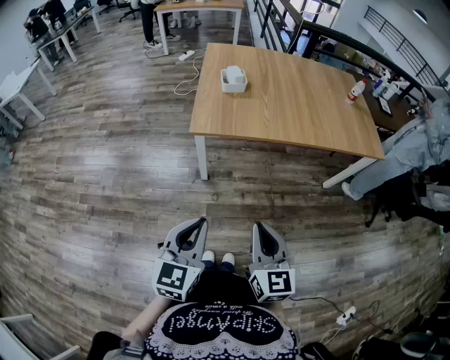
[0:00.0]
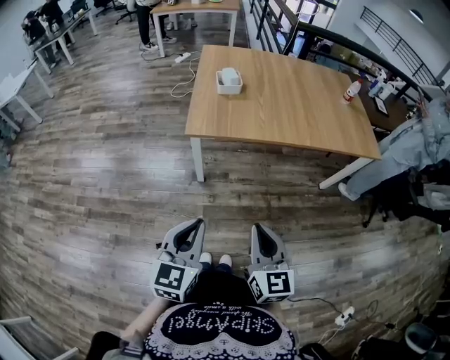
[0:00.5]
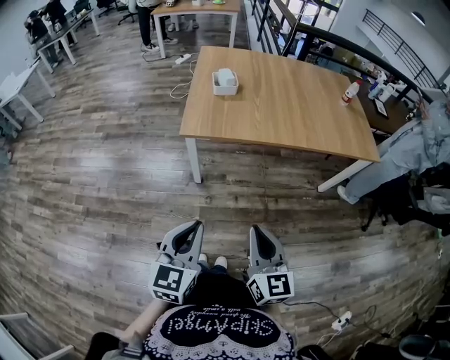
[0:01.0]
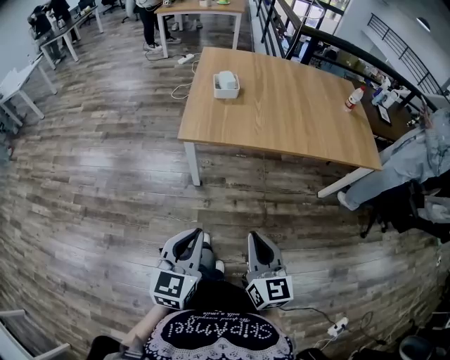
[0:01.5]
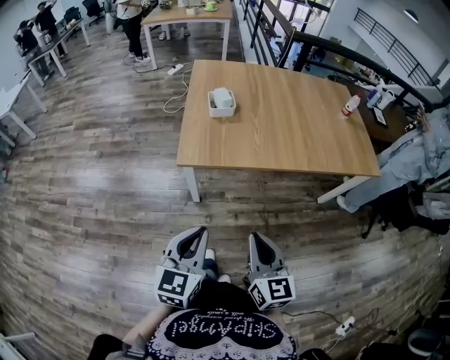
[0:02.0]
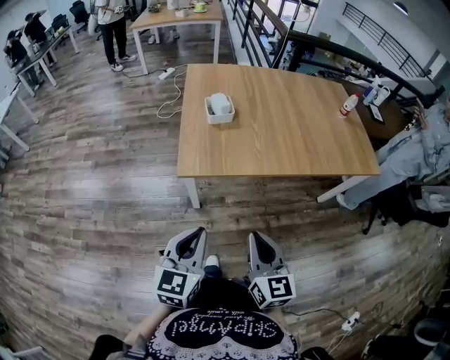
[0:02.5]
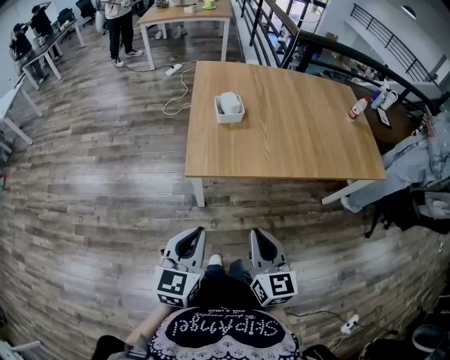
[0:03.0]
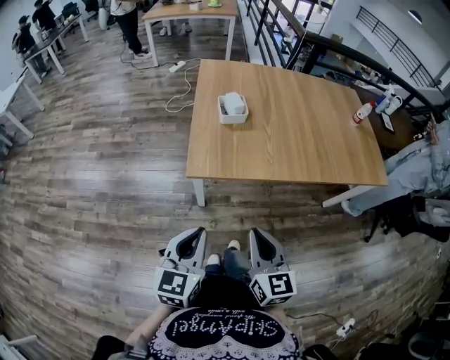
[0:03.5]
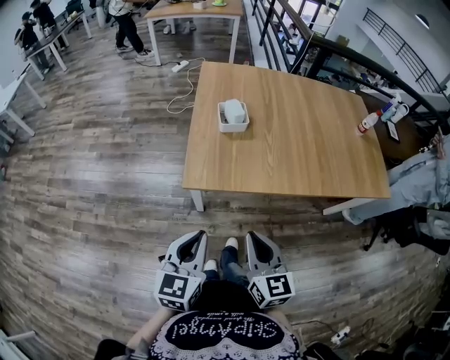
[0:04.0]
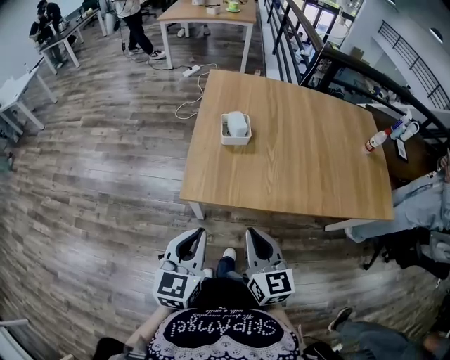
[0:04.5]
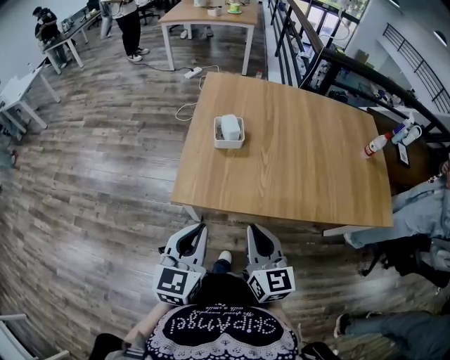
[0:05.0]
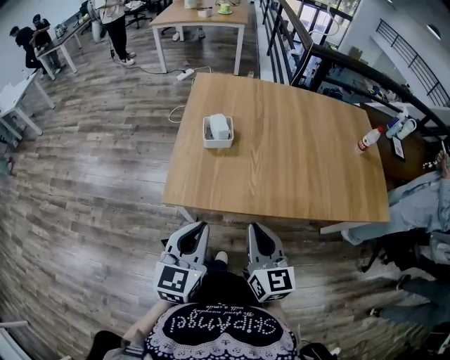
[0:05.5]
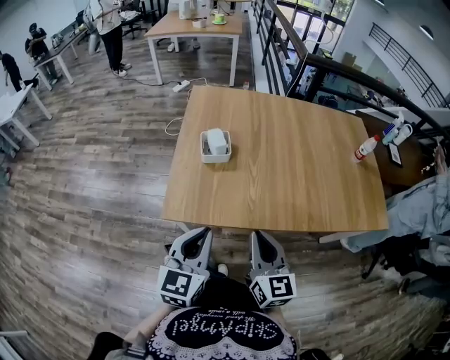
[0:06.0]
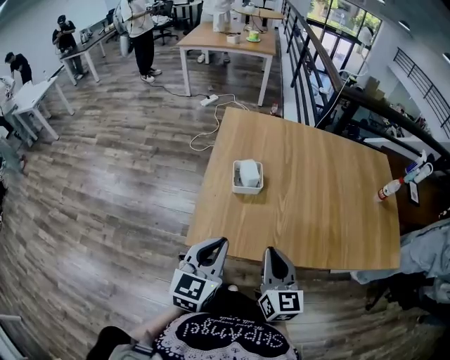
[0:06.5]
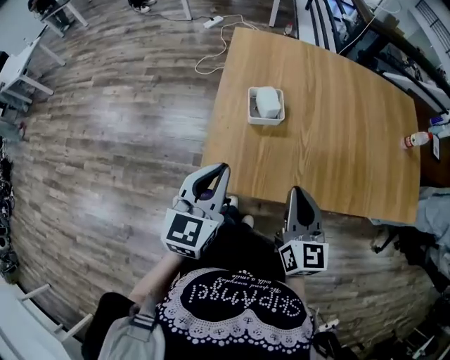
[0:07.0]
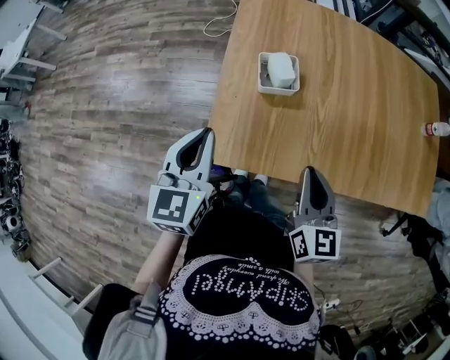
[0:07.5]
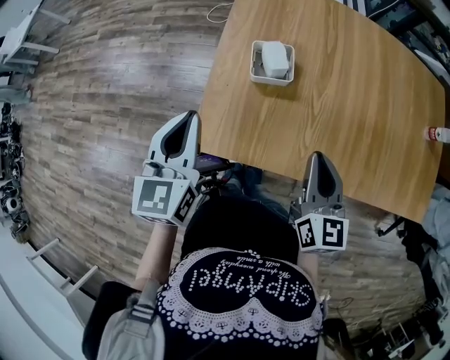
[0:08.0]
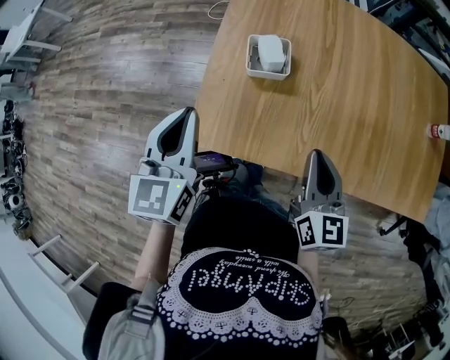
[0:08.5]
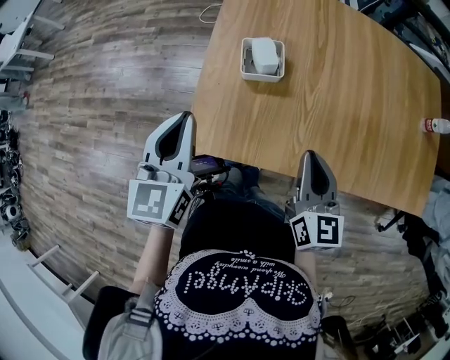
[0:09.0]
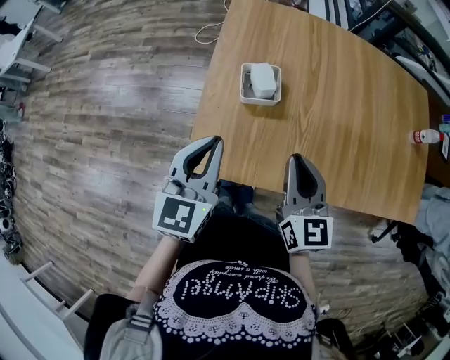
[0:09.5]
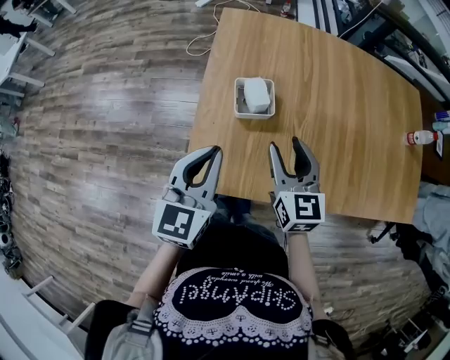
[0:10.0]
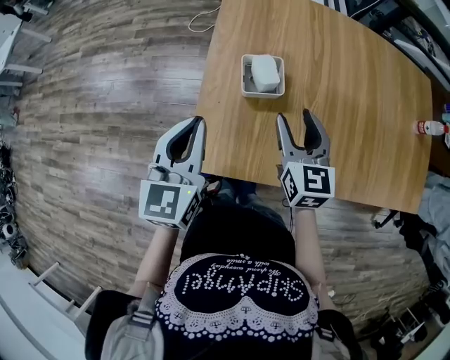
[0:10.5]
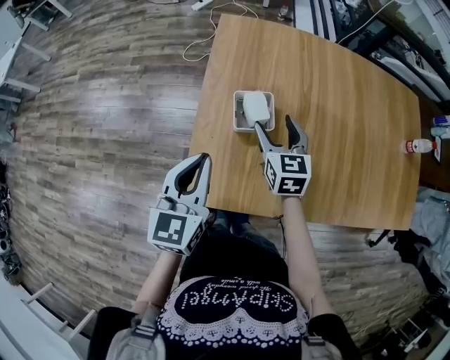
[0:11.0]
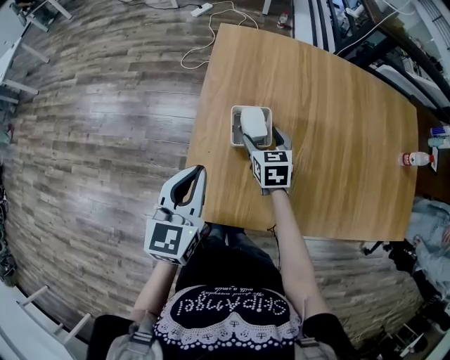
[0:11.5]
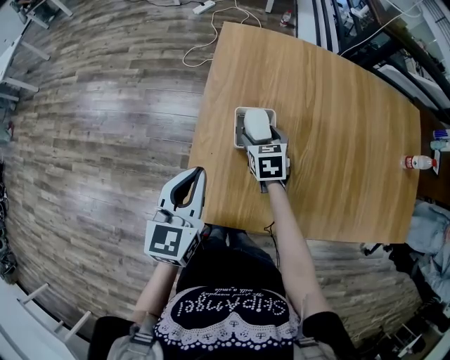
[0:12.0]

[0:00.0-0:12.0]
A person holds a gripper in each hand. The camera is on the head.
0:00.0 to 0:02.0: The grippers both shift forward by approximately 10 cm.
0:02.0 to 0:04.0: The right gripper shifts some 15 cm forward and to the left, while the left gripper shifts about 10 cm forward.
0:04.0 to 0:06.0: The two grippers go about 15 cm forward and to the right.
0:06.0 to 0:08.0: The right gripper goes roughly 15 cm forward. Meanwhile the left gripper goes roughly 20 cm forward and to the left.
0:08.0 to 0:10.0: The right gripper moves forward and to the left, approximately 10 cm, and opens, while the left gripper heads to the right, covering roughly 5 cm.
0:10.0 to 0:12.0: The left gripper moves forward, approximately 5 cm. Meanwhile the right gripper heads downward and forward, covering some 20 cm, swivels roughly 30 degrees, and opens.

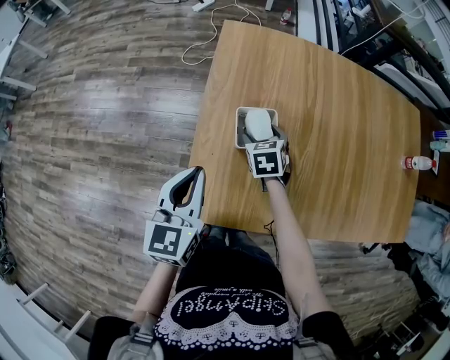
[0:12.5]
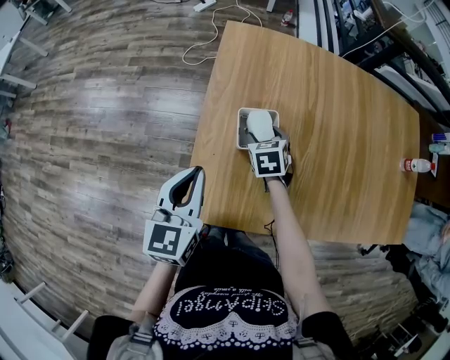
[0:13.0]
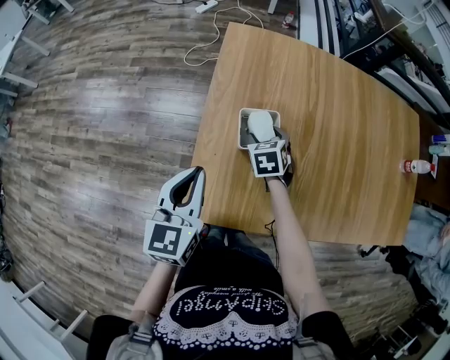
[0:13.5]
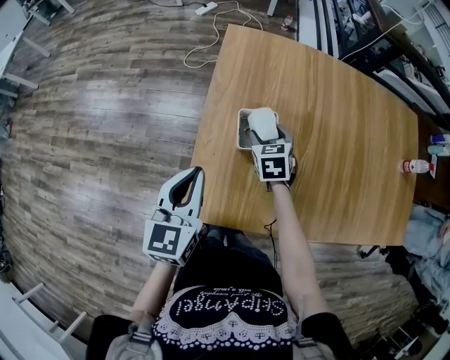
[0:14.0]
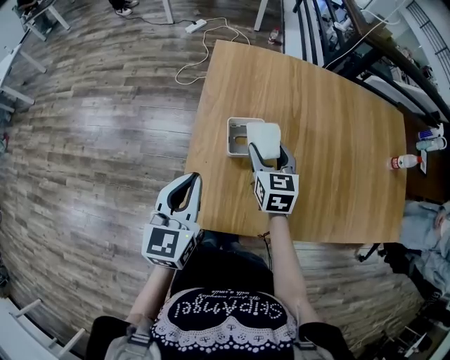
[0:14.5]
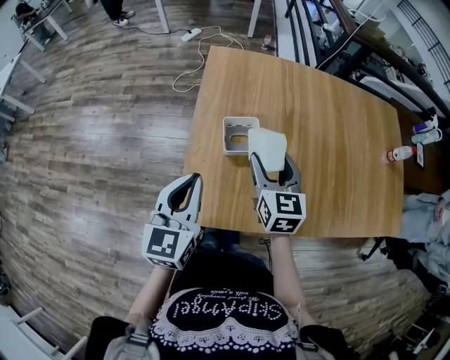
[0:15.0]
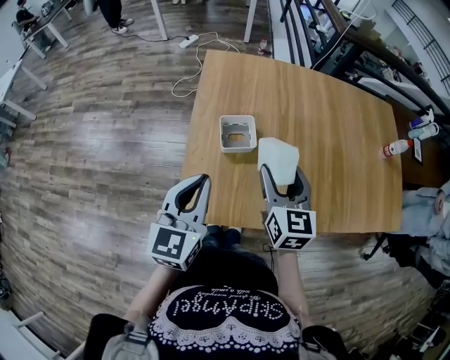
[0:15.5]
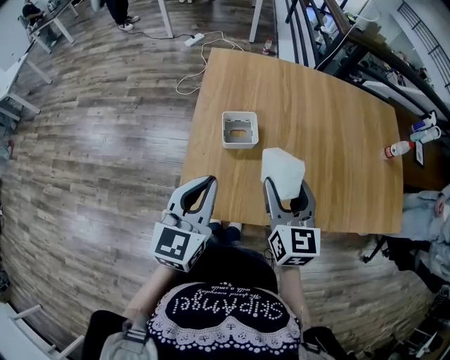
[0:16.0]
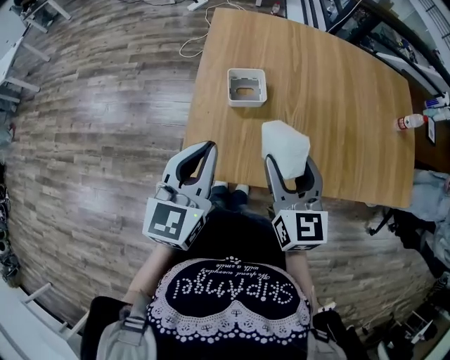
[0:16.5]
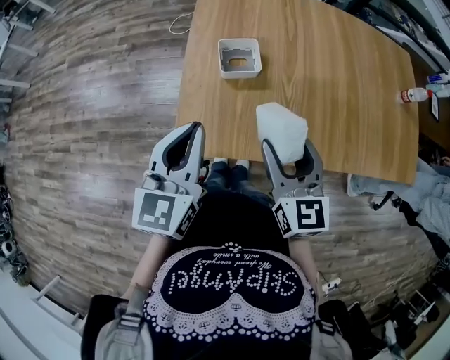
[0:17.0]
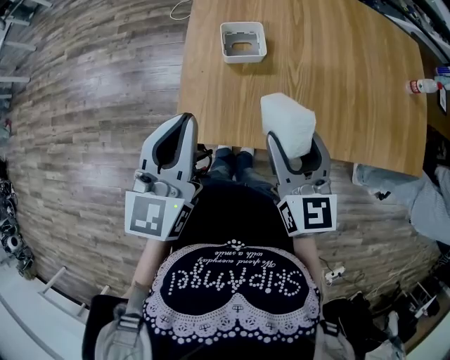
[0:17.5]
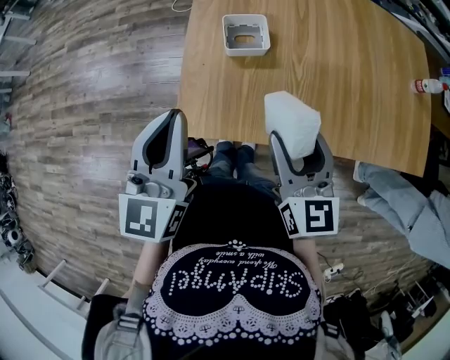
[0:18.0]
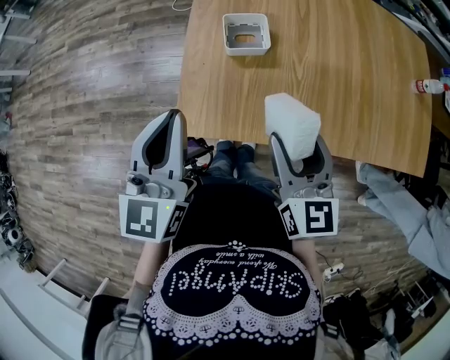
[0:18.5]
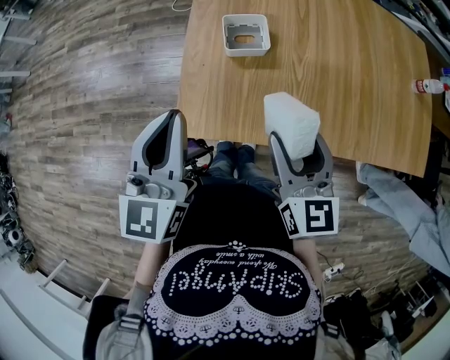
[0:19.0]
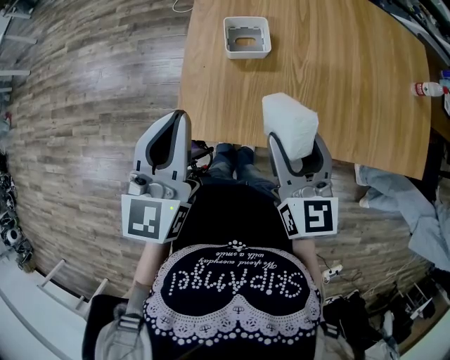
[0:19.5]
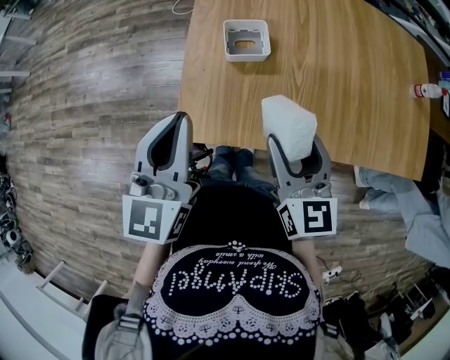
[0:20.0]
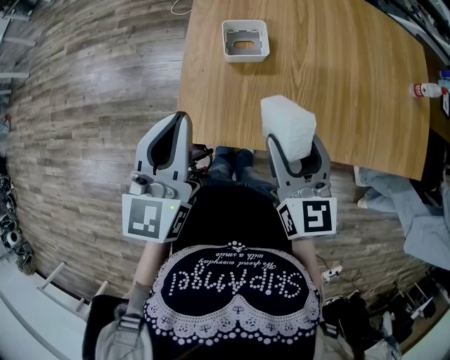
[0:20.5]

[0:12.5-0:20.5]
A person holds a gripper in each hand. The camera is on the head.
0:12.5 to 0:14.5: The right gripper goes some 10 cm upward, and swivels about 20 degrees.
0:14.5 to 0:16.5: The right gripper moves backward and upward, roughly 20 cm; the left gripper heads backward and to the right, covering some 10 cm.
0:16.5 to 0:18.5: The grippers stay close to where they were, moving slightly.
0:18.5 to 0:20.5: Both grippers stay put.

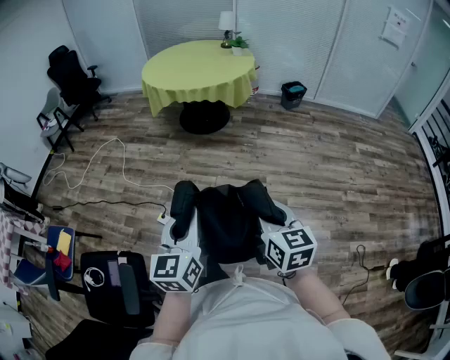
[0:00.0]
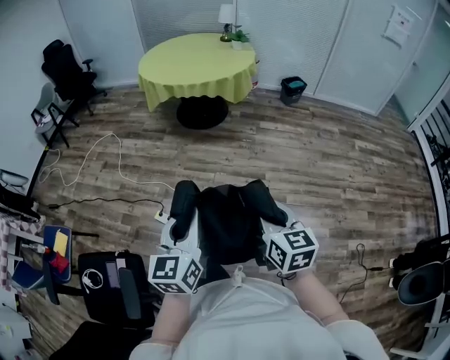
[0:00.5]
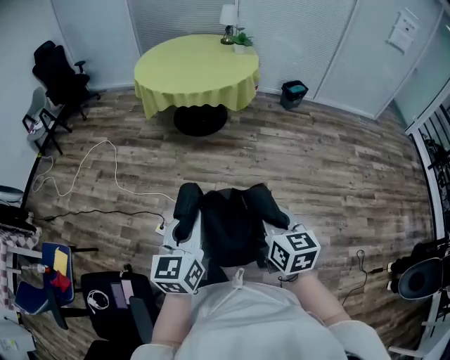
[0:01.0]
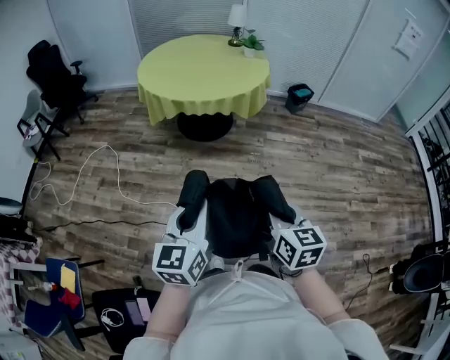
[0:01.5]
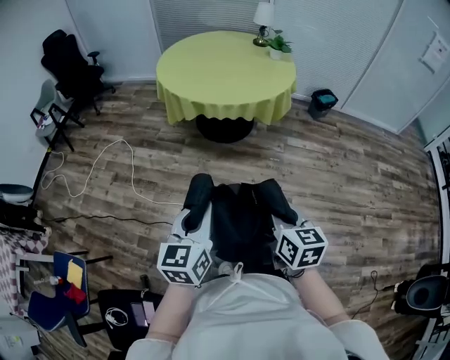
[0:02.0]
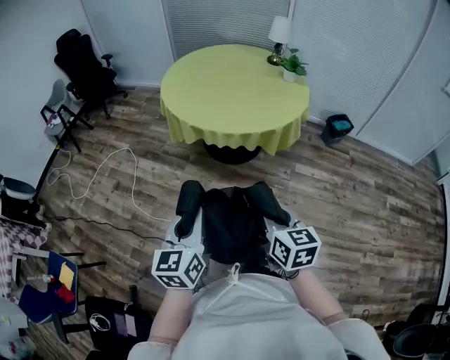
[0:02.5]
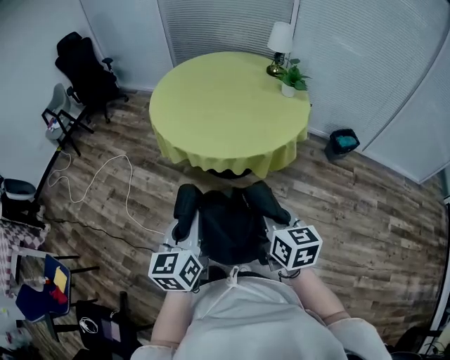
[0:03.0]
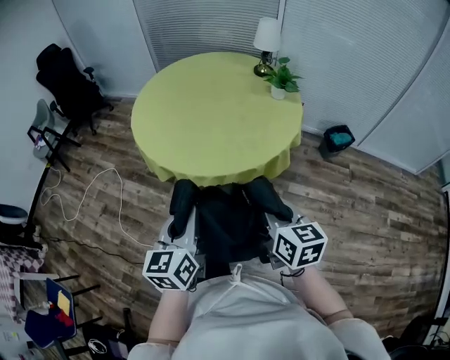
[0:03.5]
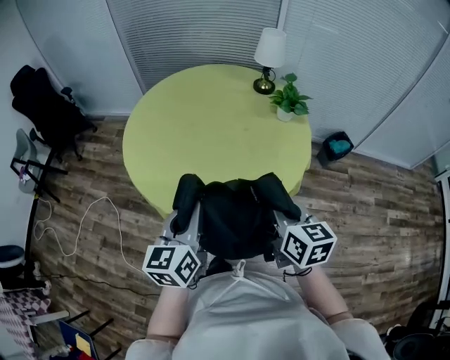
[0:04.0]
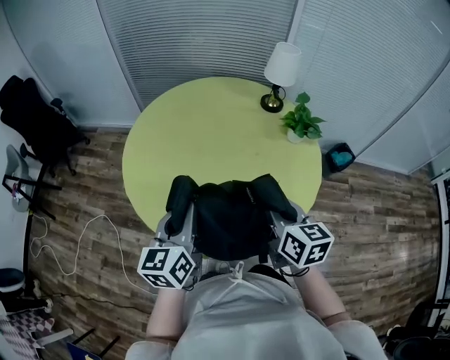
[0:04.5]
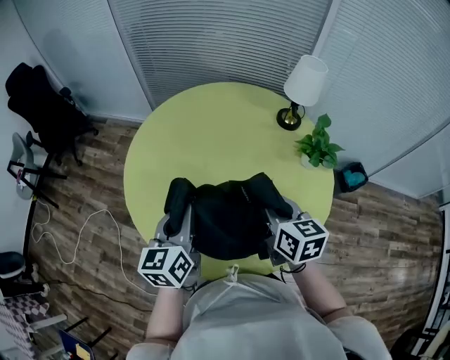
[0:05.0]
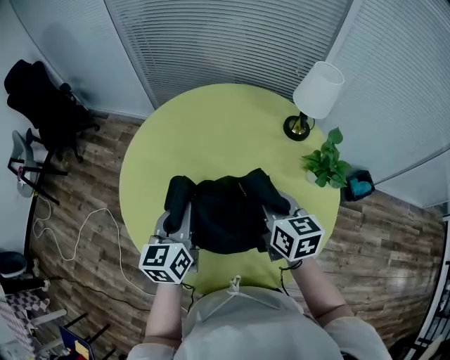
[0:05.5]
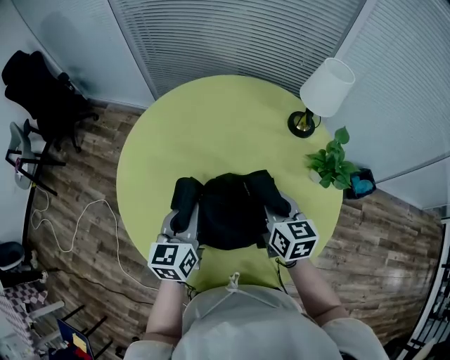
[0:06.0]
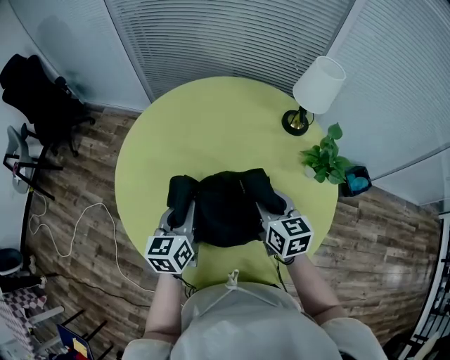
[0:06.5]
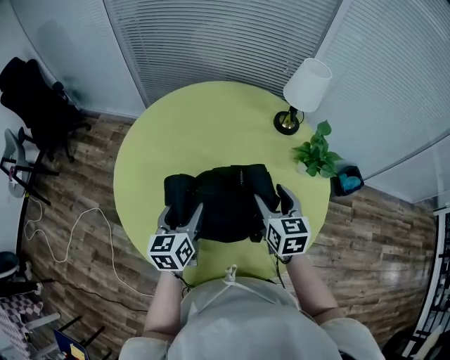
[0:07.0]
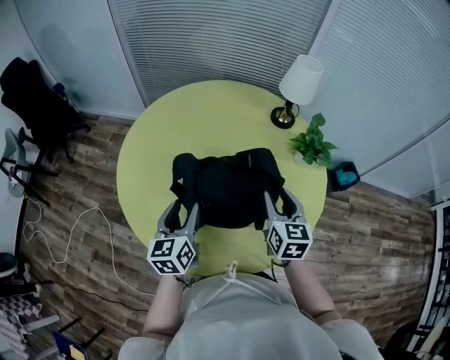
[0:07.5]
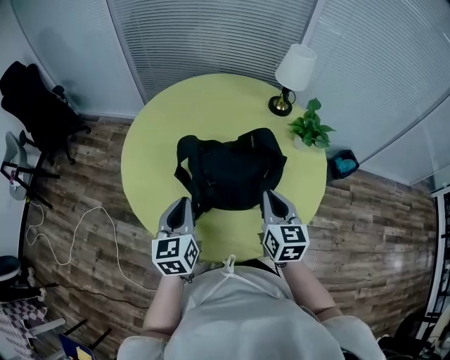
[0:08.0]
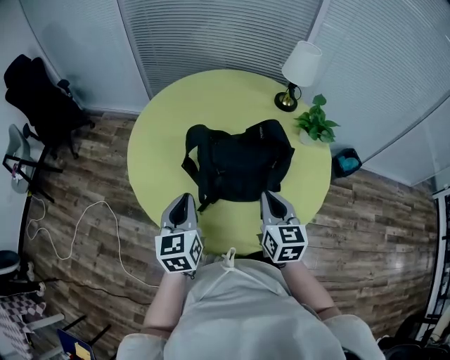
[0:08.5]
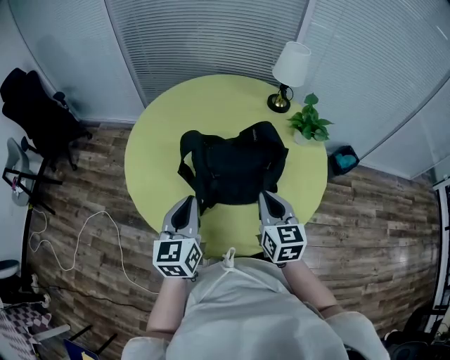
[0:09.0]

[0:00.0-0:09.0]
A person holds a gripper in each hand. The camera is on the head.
0:00.0 to 0:02.0: The pair of grippers is taken forward and to the left, approximately 40 cm.
0:02.0 to 0:04.5: Both grippers are carried forward, approximately 80 cm.
0:04.5 to 0:07.0: The left gripper is displaced forward and downward by some 20 cm, and opens its fingers. The right gripper heads forward, covering approximately 20 cm, and opens its fingers.
0:07.0 to 0:09.0: Both grippers move backward, some 15 cm. The right gripper closes up; the left gripper closes up.
